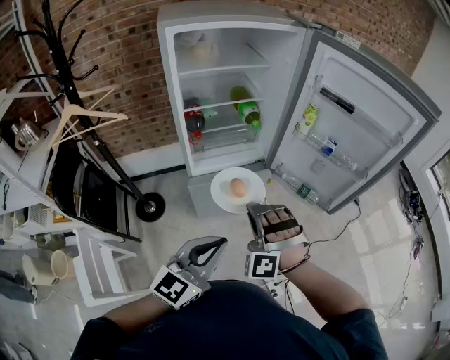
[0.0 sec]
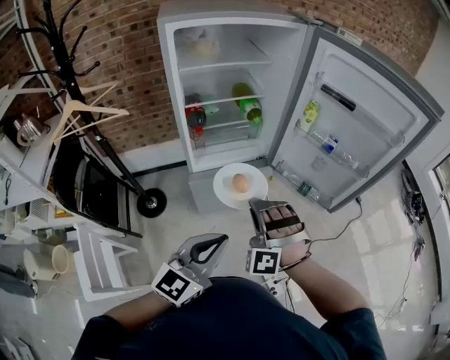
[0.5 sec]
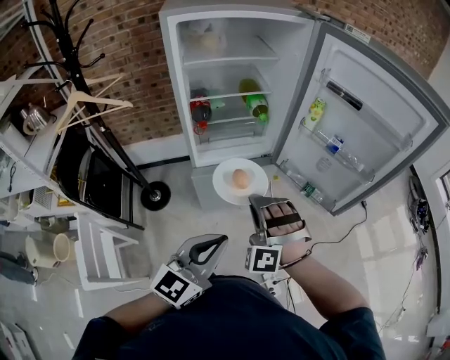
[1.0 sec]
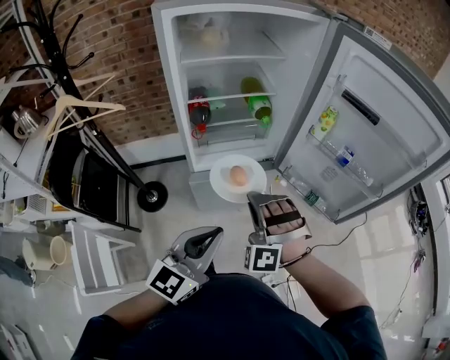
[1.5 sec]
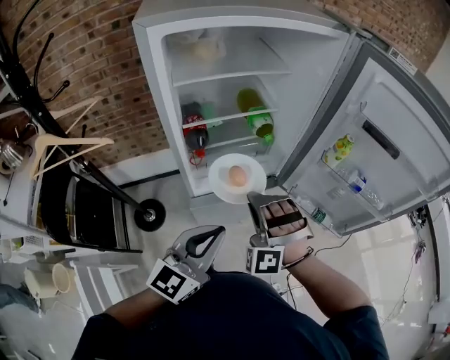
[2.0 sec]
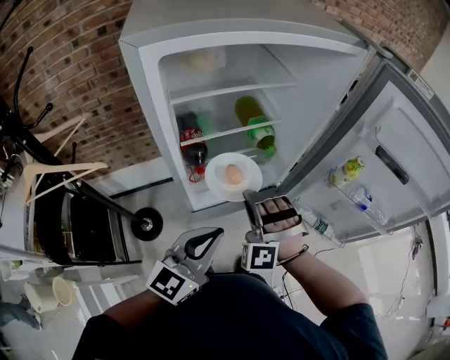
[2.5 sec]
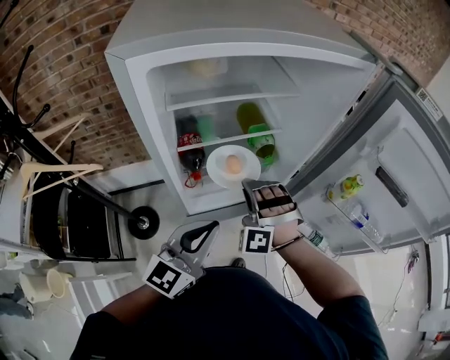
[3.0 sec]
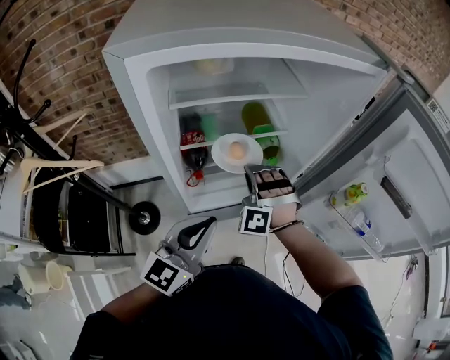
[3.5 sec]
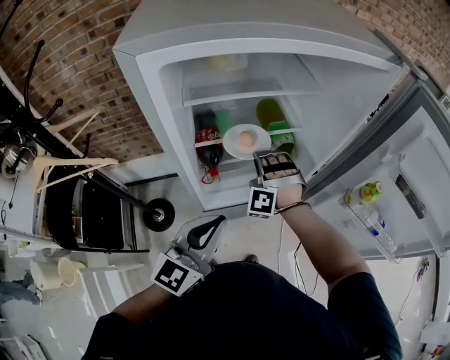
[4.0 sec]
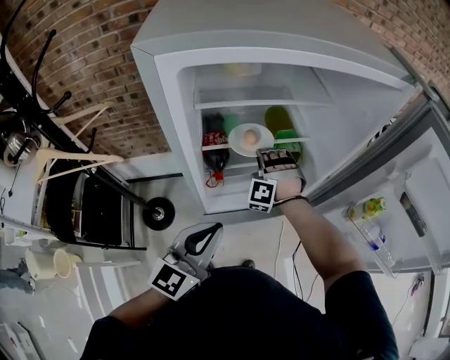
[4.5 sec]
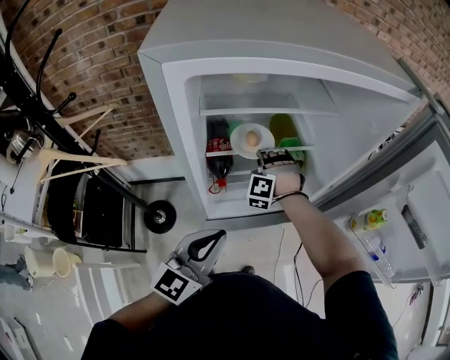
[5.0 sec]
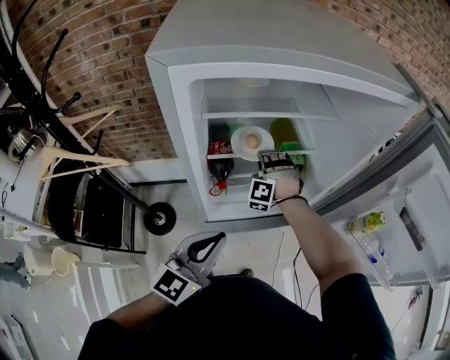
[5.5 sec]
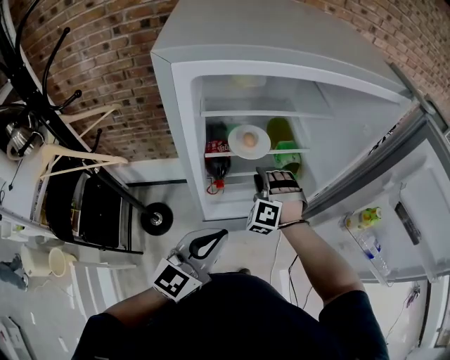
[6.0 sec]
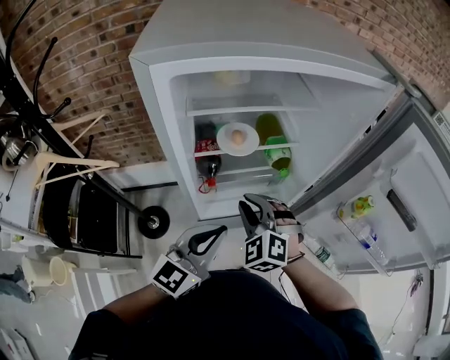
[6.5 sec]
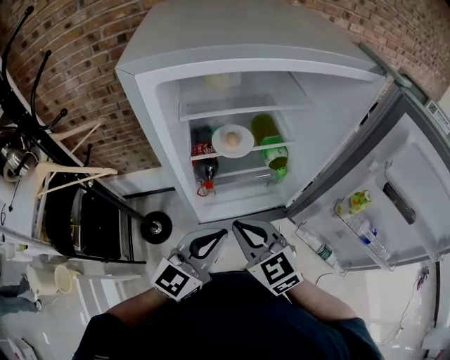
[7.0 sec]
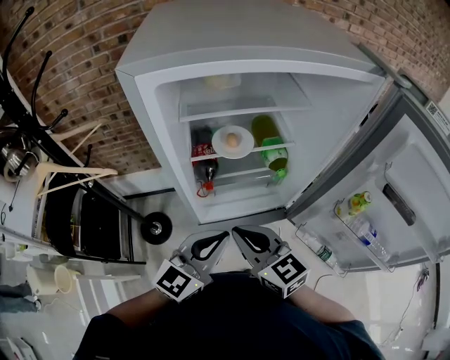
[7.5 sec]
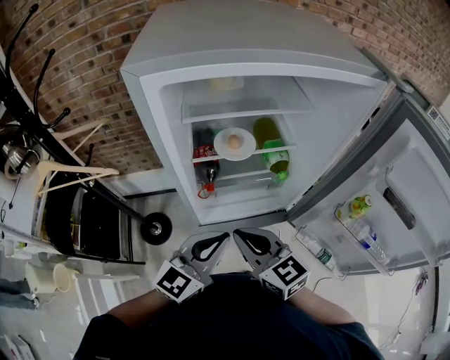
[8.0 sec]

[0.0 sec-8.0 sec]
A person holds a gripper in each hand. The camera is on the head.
0.0 sec to 2.0 sec: The left gripper shifts by some 20 cm.
2.0 sec to 4.0 sec: The left gripper shifts by approximately 15 cm.

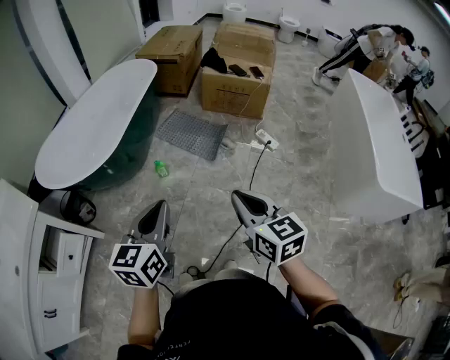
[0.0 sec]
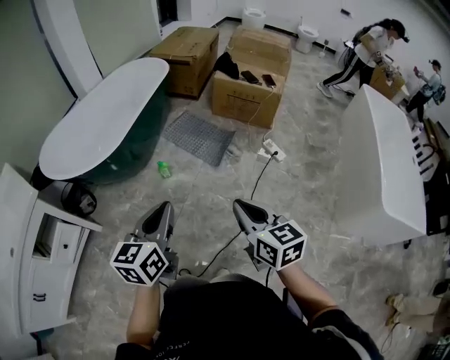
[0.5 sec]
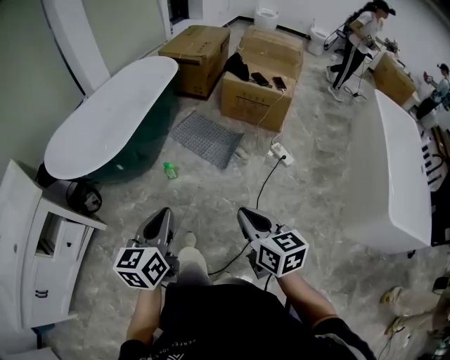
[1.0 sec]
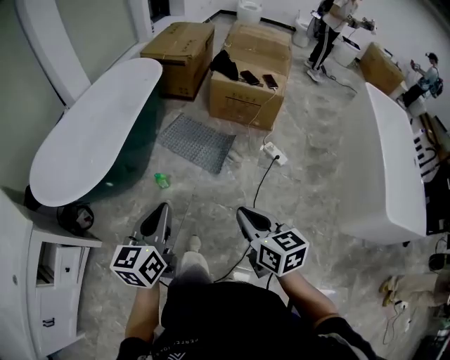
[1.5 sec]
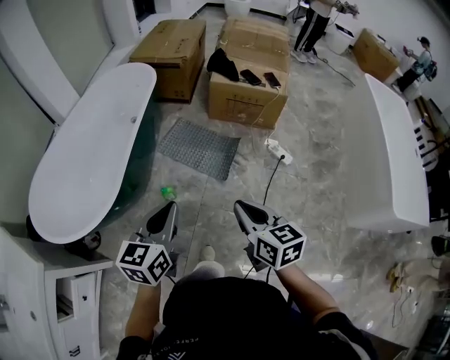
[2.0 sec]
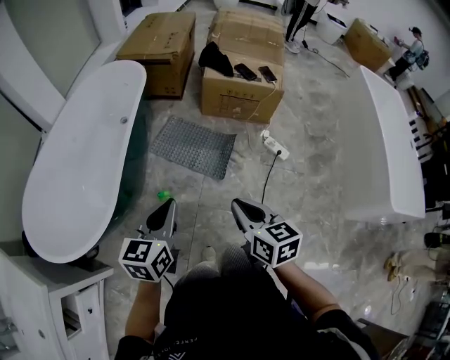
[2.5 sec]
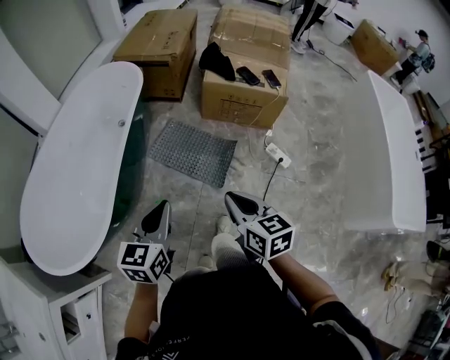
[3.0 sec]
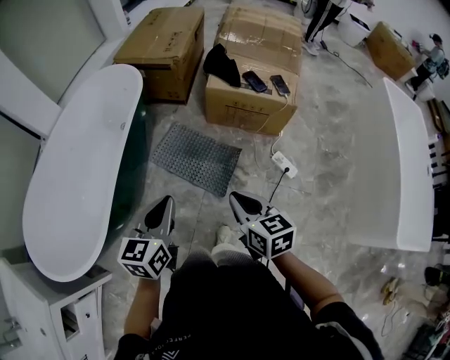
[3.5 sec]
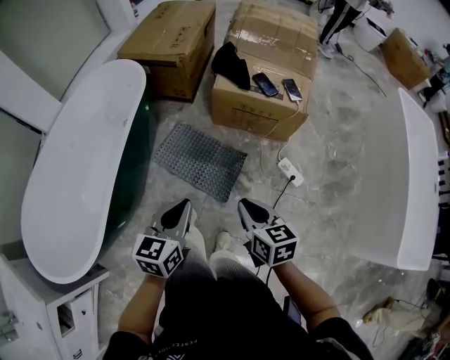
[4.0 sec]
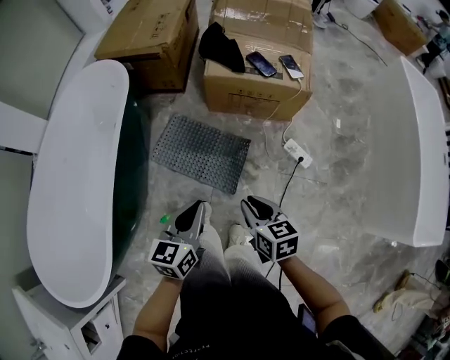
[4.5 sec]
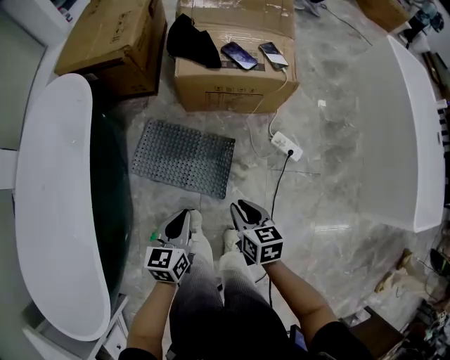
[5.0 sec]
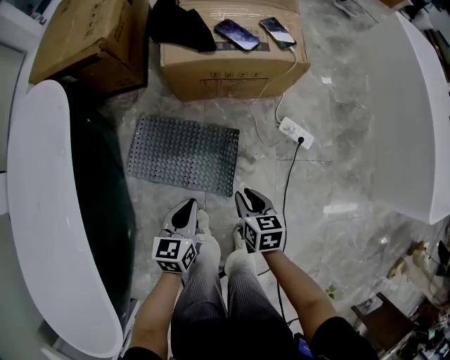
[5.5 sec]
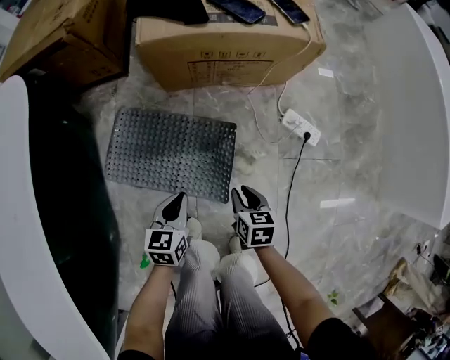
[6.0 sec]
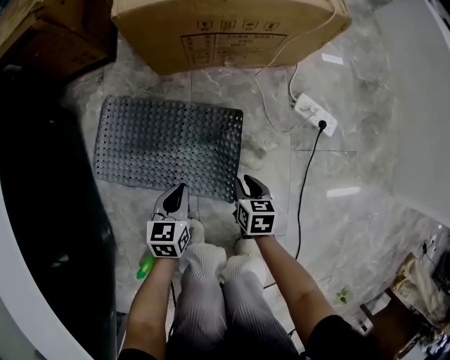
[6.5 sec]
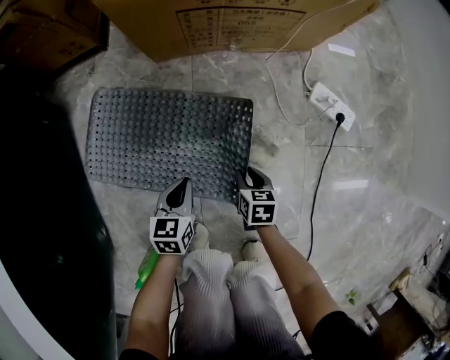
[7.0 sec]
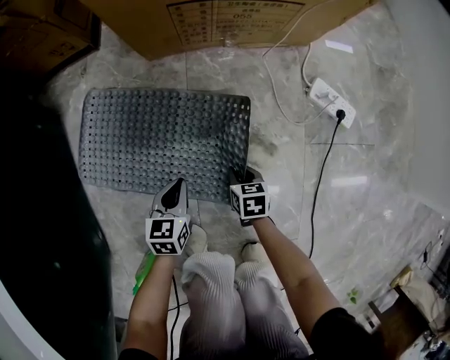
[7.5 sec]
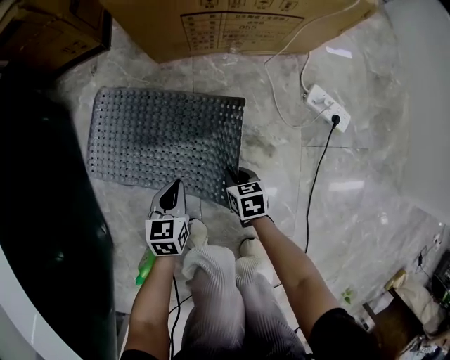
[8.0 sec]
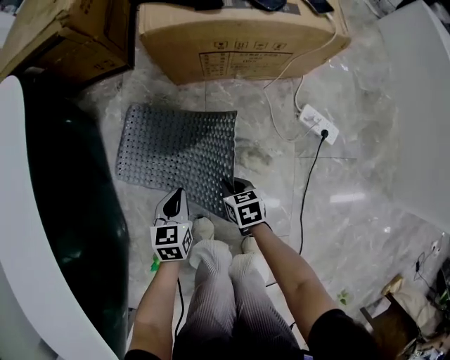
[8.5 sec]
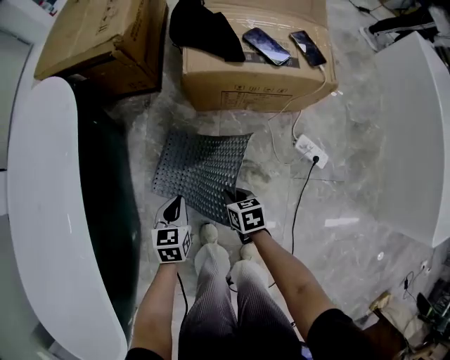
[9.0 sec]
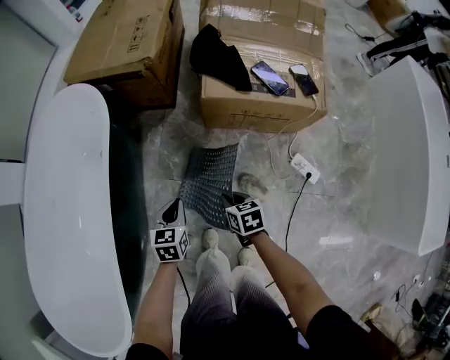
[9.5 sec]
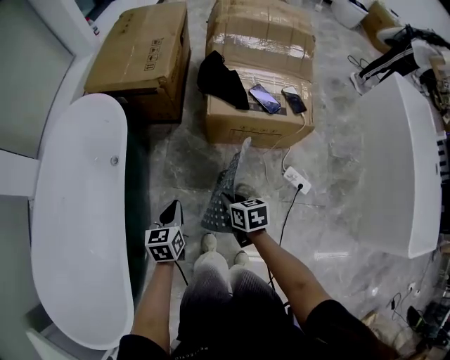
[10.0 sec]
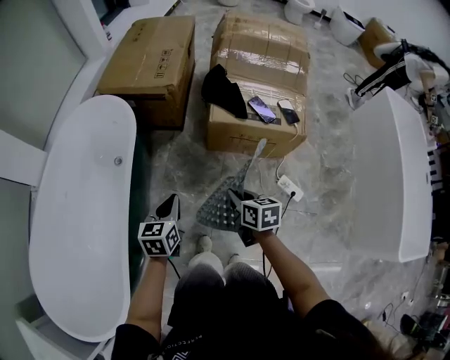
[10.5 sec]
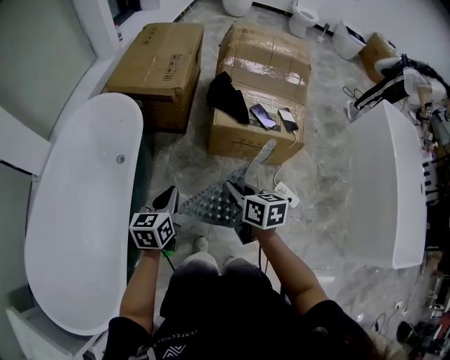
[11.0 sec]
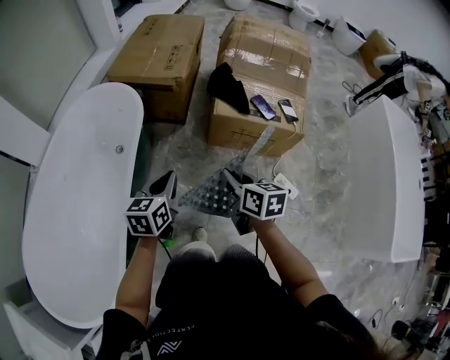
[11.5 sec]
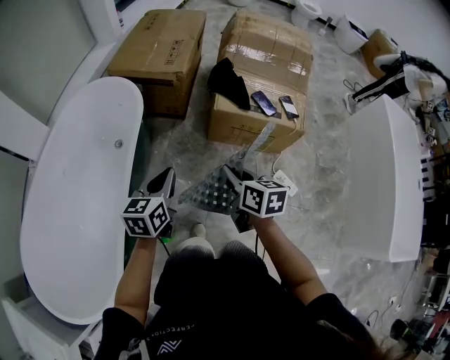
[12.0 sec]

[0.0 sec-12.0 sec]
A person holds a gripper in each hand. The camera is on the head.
0.0 sec to 2.0 sec: Both grippers move forward, about 25 cm.
2.0 sec to 4.0 sec: Both grippers travel together forward, some 25 cm.
4.0 sec to 6.0 sec: The left gripper moves downward and forward, roughly 50 cm, and rotates some 20 degrees, while the right gripper shifts some 50 cm downward, turns by some 30 degrees, and opens up.
6.0 sec to 8.0 sec: Both grippers travel together downward, approximately 20 cm.
8.0 sec to 10.0 sec: The grippers both shift upward by roughly 50 cm.
10.0 sec to 12.0 sec: Both grippers travel together upward, about 15 cm.

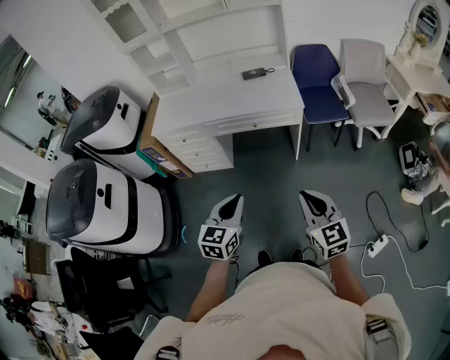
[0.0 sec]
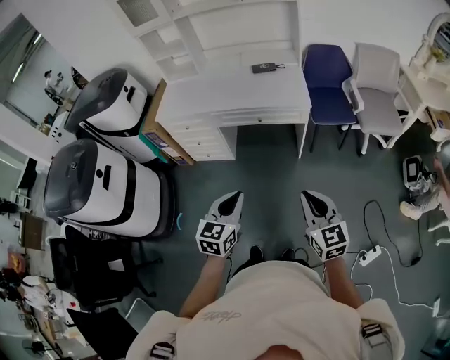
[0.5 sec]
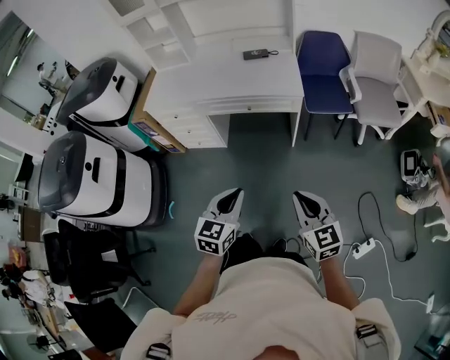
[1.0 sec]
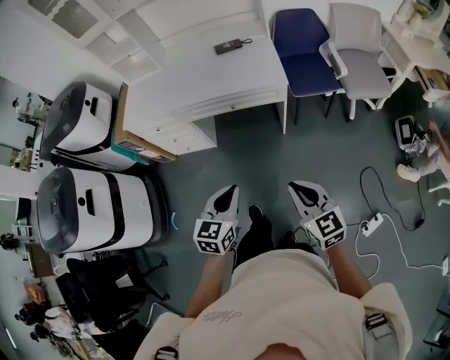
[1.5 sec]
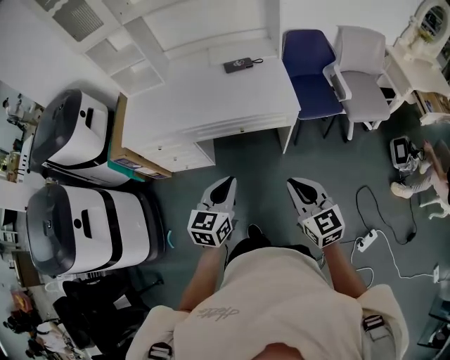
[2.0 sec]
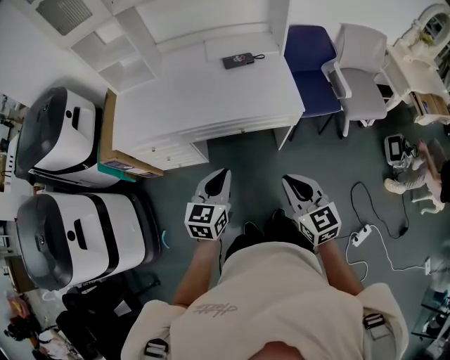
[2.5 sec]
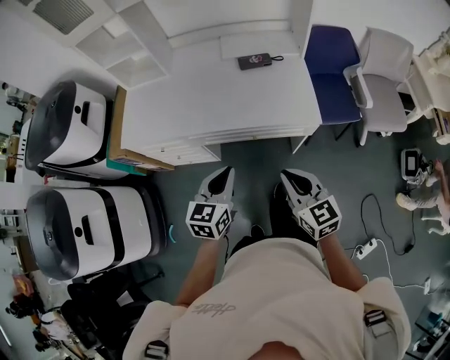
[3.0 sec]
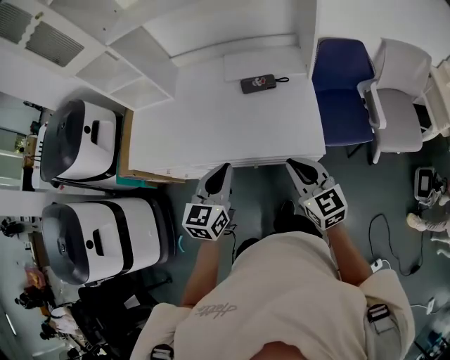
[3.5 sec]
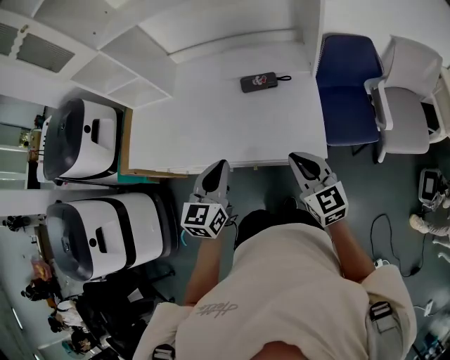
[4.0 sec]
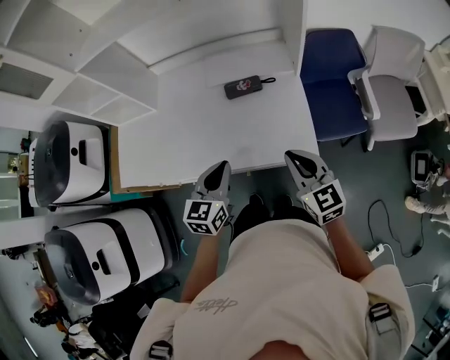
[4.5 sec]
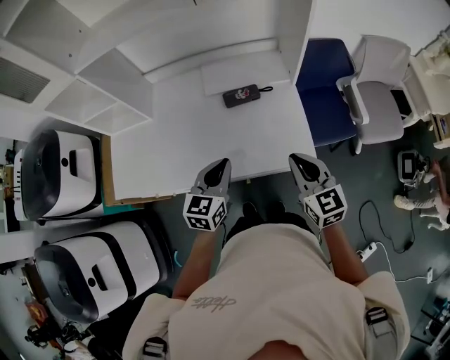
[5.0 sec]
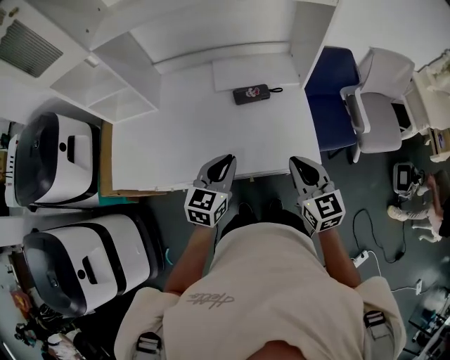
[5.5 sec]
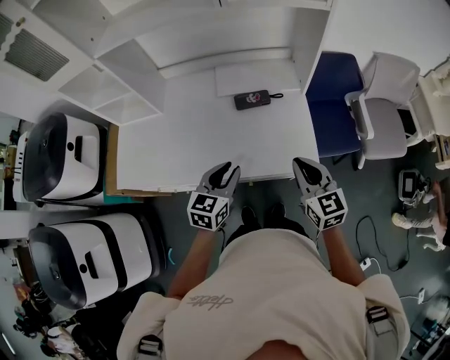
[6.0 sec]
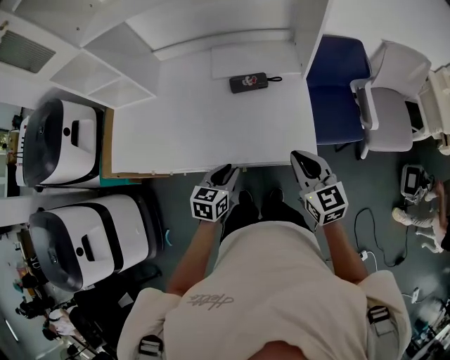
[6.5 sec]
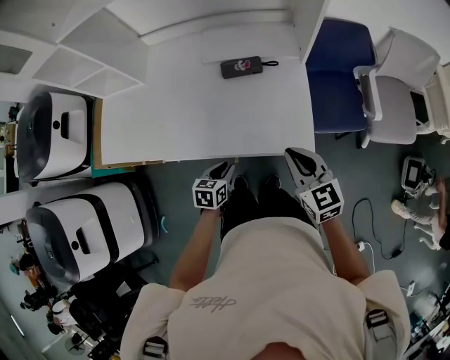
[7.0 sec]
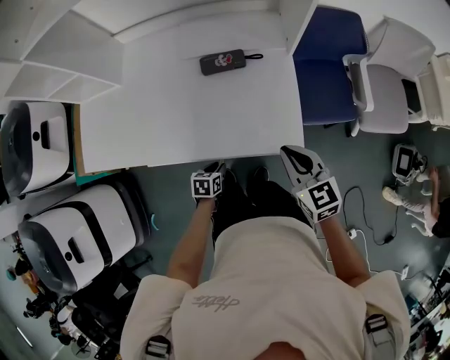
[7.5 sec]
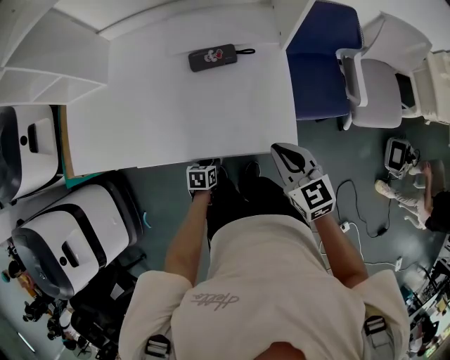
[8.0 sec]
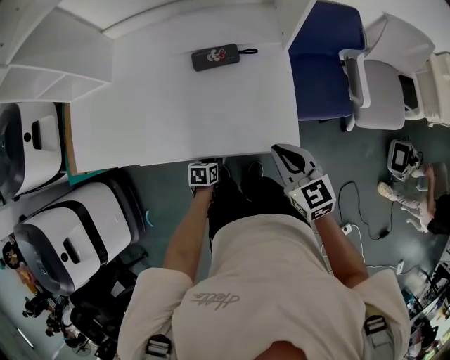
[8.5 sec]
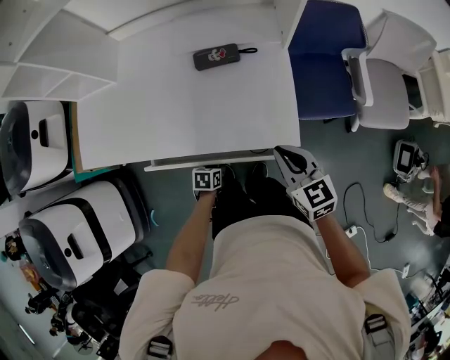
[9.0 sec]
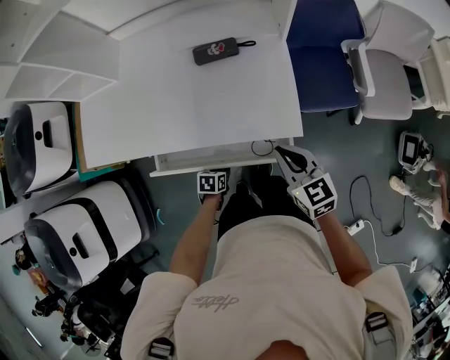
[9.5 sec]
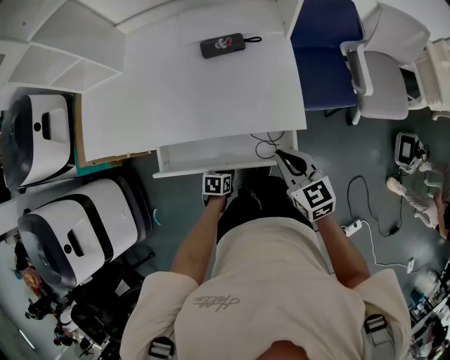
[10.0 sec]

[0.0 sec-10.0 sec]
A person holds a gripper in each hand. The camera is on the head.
0.0 sec to 2.0 sec: The grippers both shift forward by roughly 20 cm.
2.0 sec to 4.0 sec: The two grippers go roughly 35 cm forward.
4.0 sec to 6.0 sec: The left gripper moves roughly 5 cm, and opens.
6.0 sec to 8.0 sec: The right gripper moves downward, some 10 cm, while the left gripper is displaced downward by some 35 cm, and angles its fingers downward, by roughly 40 degrees.
8.0 sec to 10.0 sec: The two grippers go approximately 10 cm backward.
